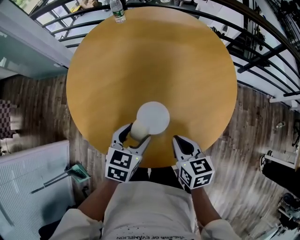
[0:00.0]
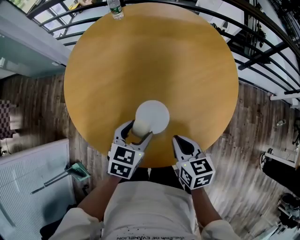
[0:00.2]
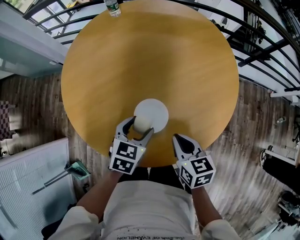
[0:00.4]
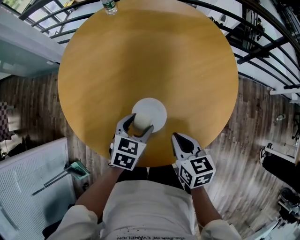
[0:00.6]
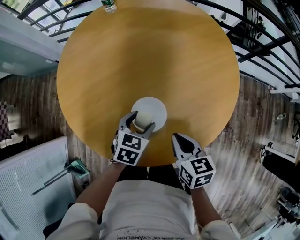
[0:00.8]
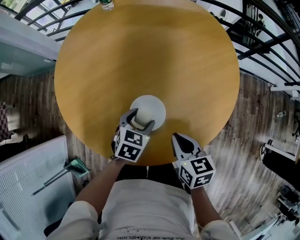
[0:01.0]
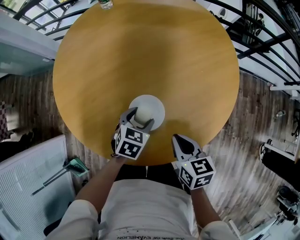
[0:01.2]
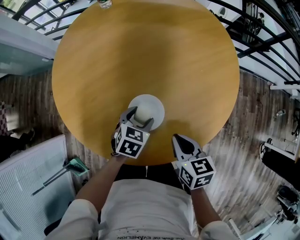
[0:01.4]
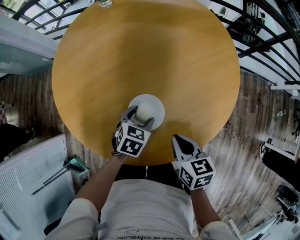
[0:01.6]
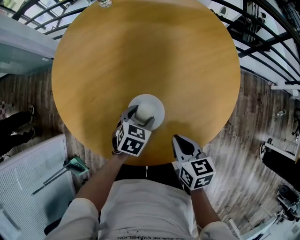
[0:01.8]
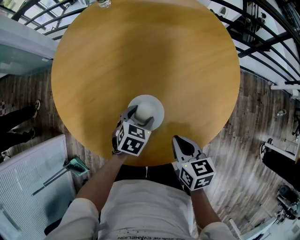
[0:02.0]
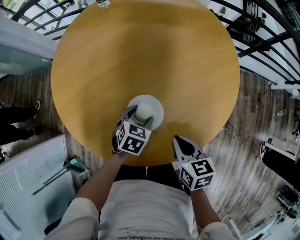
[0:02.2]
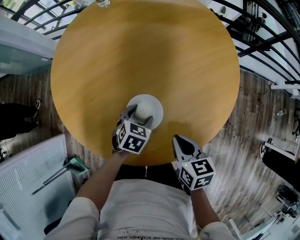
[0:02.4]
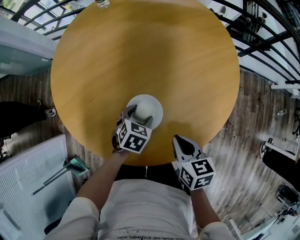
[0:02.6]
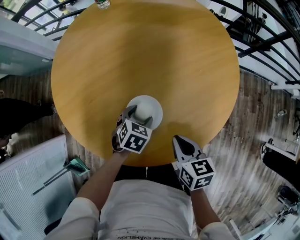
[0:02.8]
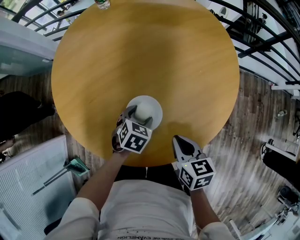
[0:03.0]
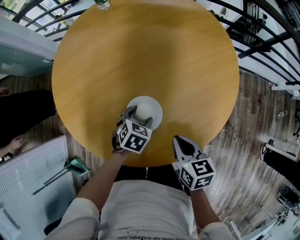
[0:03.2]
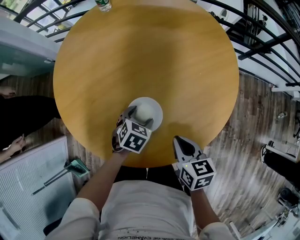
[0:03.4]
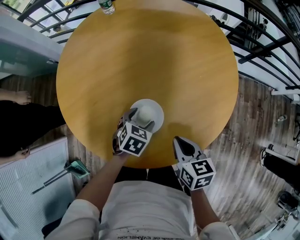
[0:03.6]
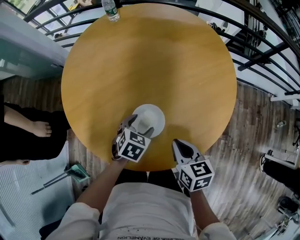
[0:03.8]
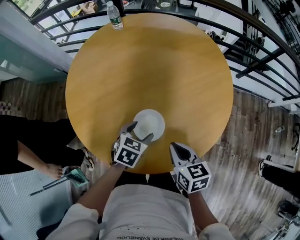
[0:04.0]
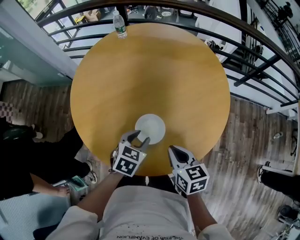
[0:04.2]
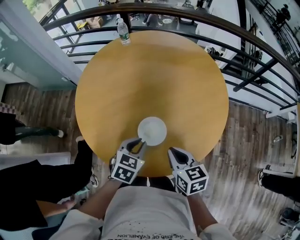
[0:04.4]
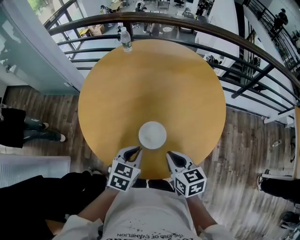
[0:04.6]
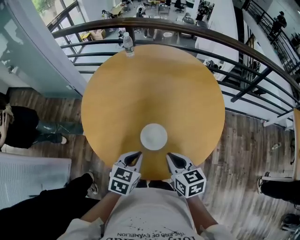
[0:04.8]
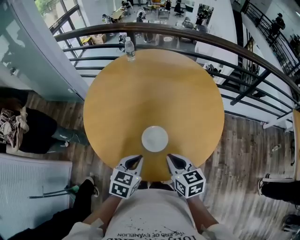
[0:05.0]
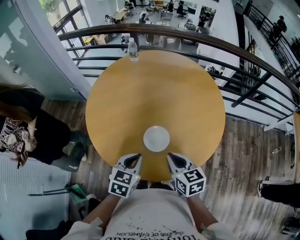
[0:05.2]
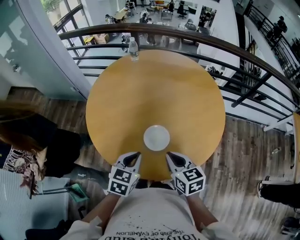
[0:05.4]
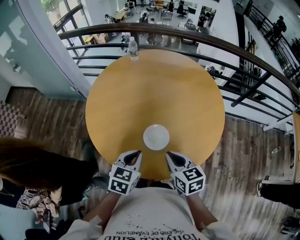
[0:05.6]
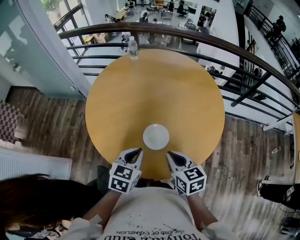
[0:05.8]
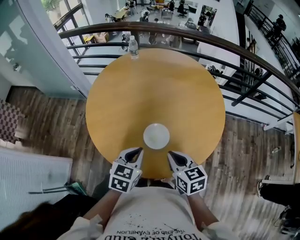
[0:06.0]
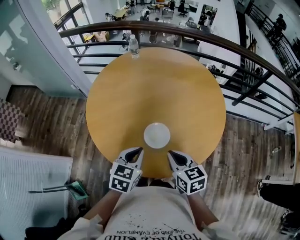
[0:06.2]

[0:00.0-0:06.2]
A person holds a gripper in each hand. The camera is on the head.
0:00.0 to 0:01.6: The left gripper shifts approximately 15 cm downward; the right gripper shifts by some 5 cm.
0:01.6 to 0:03.2: There are only small adjustments of the grippers.
0:03.2 to 0:04.6: The left gripper travels upward and backward by roughly 20 cm, turns by approximately 20 degrees, and closes; the right gripper heads upward, backward and to the left, covering roughly 10 cm.
0:04.6 to 0:06.2: There are only small adjustments of the grippers.

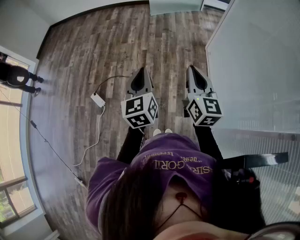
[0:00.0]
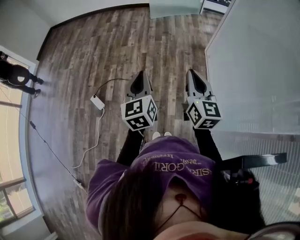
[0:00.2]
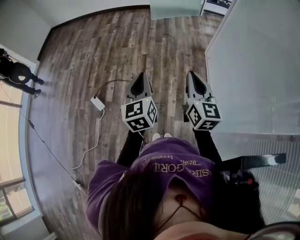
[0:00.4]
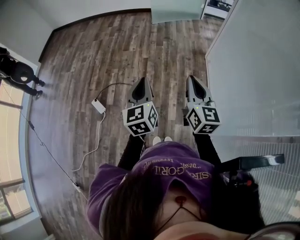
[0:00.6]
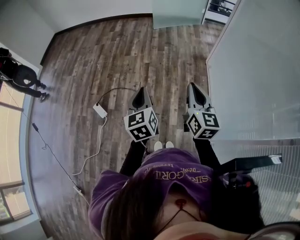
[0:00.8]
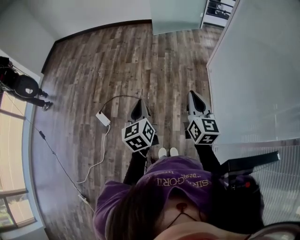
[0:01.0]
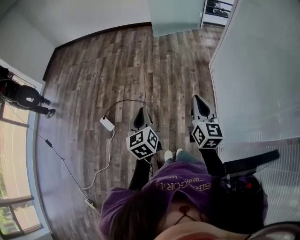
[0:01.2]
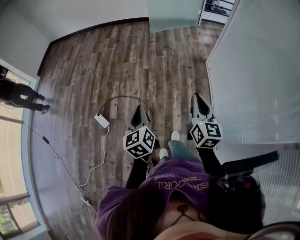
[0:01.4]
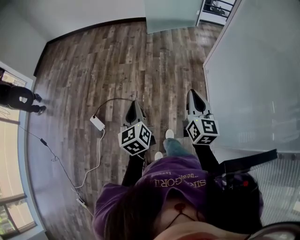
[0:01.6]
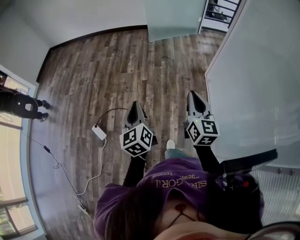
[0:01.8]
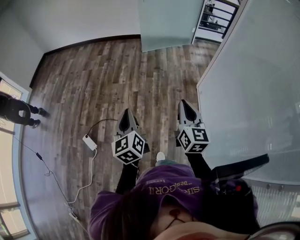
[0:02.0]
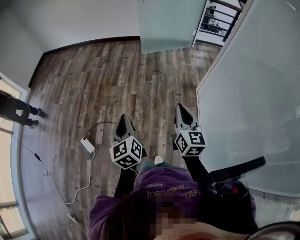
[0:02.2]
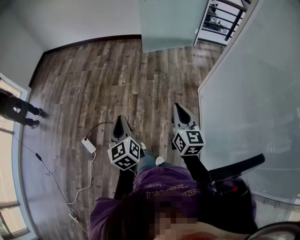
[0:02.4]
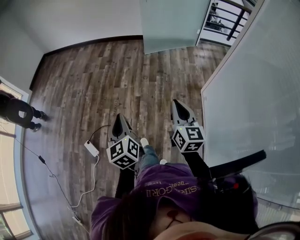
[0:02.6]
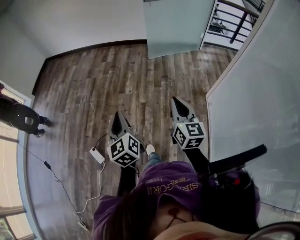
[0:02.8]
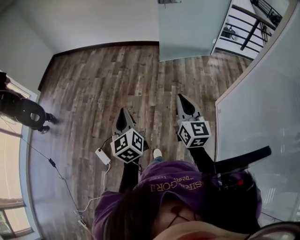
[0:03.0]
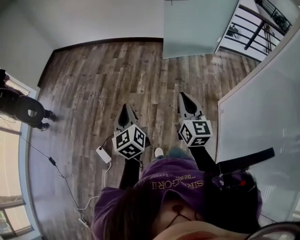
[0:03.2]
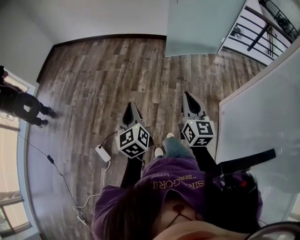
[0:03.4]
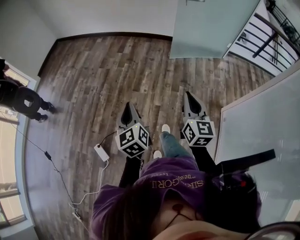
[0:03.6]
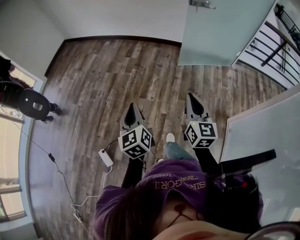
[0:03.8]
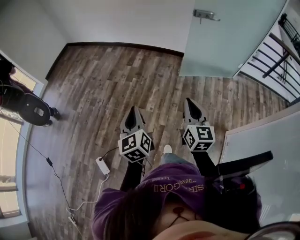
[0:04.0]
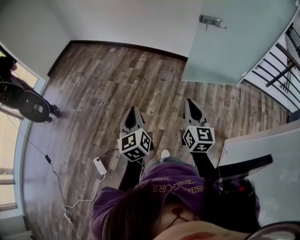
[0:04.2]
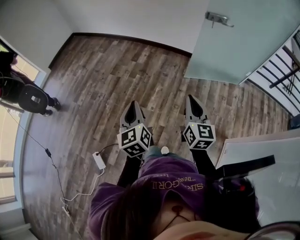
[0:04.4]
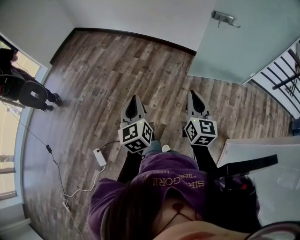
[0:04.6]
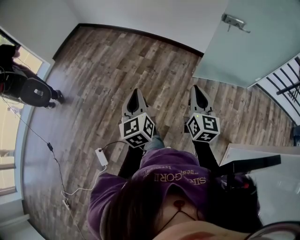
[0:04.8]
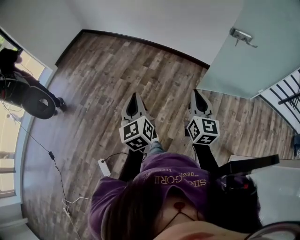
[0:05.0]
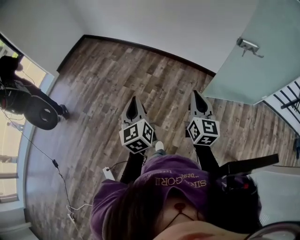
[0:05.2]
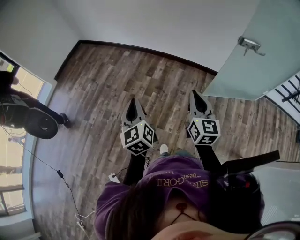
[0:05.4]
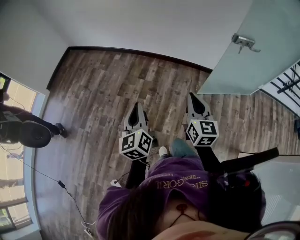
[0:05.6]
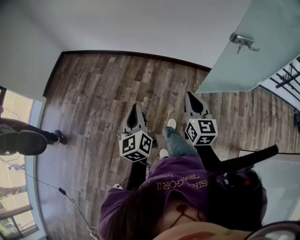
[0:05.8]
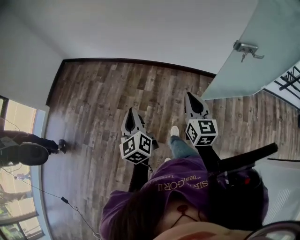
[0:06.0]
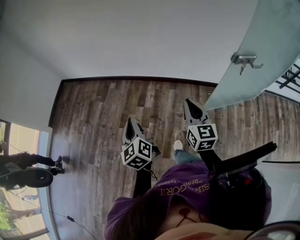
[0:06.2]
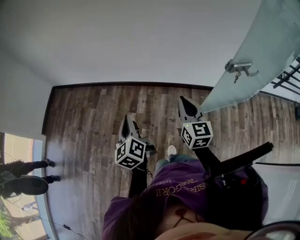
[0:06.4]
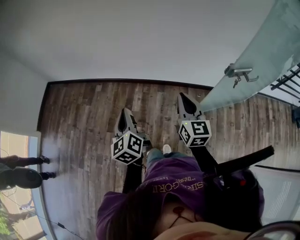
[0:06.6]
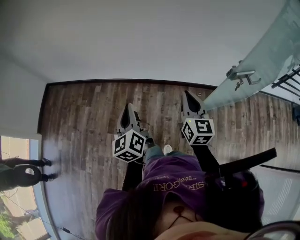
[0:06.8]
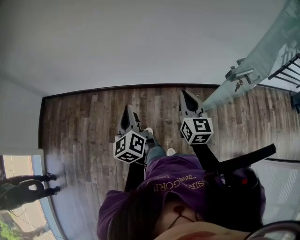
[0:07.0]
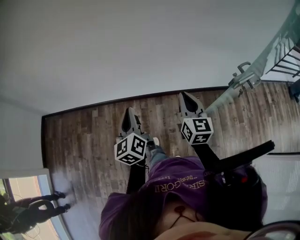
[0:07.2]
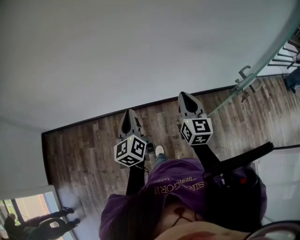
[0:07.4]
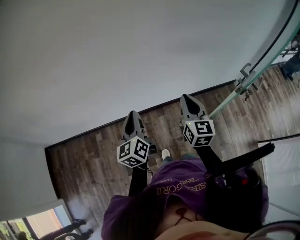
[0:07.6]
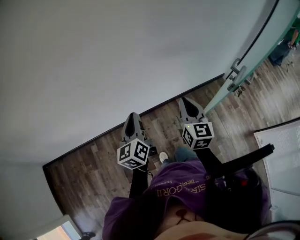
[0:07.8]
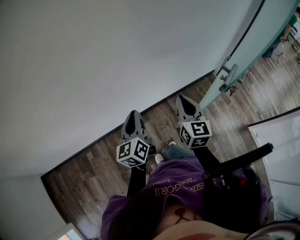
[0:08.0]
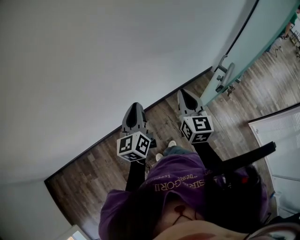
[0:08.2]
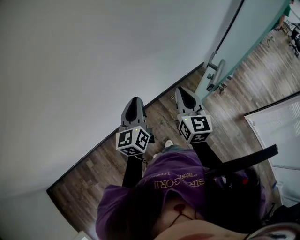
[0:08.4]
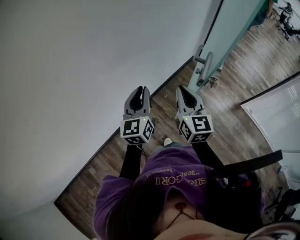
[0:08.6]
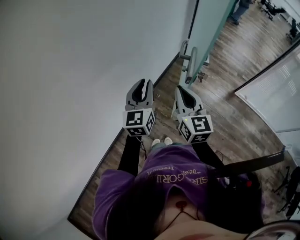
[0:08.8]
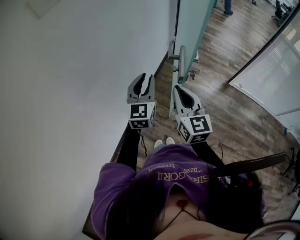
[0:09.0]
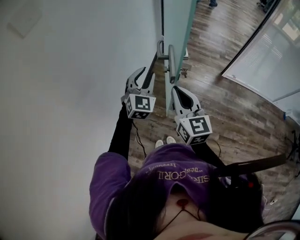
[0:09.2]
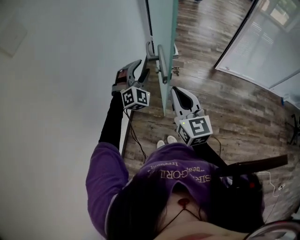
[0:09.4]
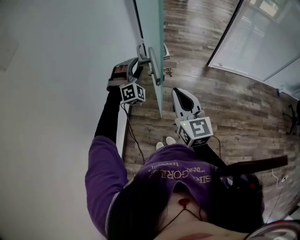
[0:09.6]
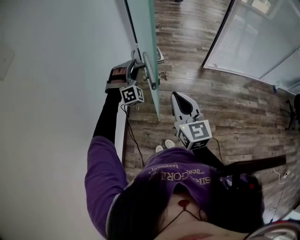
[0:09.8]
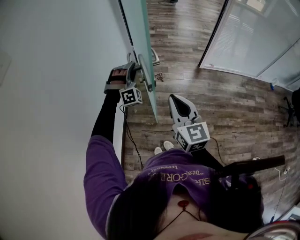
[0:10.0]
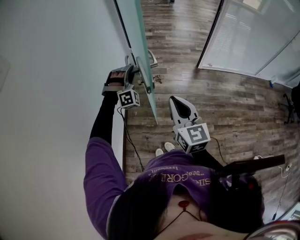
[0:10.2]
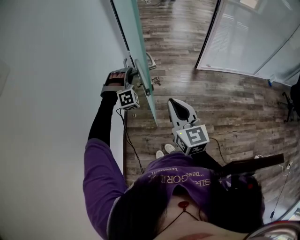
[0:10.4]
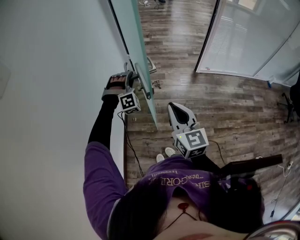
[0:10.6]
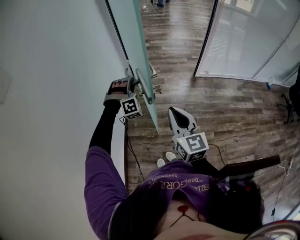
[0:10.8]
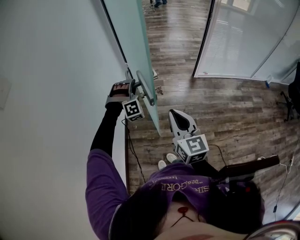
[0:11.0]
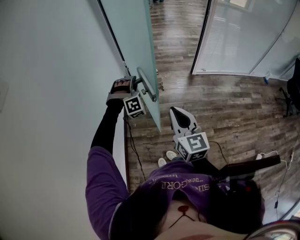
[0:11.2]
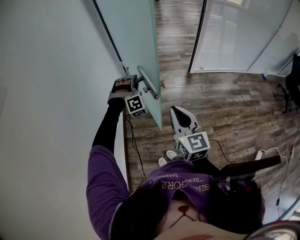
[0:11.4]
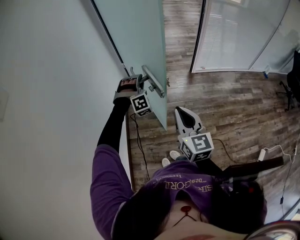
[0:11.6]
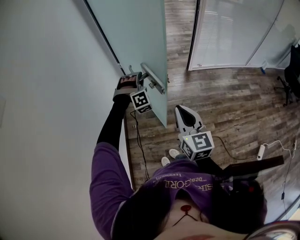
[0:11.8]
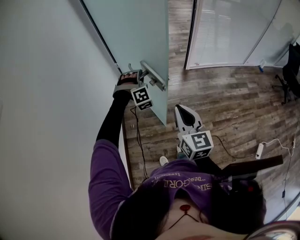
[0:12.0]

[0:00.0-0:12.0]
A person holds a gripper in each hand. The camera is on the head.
0:00.0 to 0:01.6: The right gripper moves forward, some 5 cm; the left gripper goes about 10 cm downward and to the left.
0:01.6 to 0:03.0: The grippers both shift forward by some 35 cm.
0:03.0 to 0:04.4: Both grippers move forward, approximately 35 cm.
0:04.4 to 0:06.0: The two grippers travel together, forward, some 40 cm.
0:06.0 to 0:07.6: Both grippers are carried about 50 cm. The right gripper changes its angle by approximately 30 degrees. The left gripper turns by approximately 40 degrees.
0:07.6 to 0:09.0: The left gripper ends up approximately 40 cm from where it was, and rotates about 70 degrees, while the right gripper shifts by some 25 cm, and changes its angle by some 40 degrees.
0:09.0 to 0:10.4: The right gripper travels to the right by approximately 10 cm, and rotates some 20 degrees. The left gripper shifts roughly 20 cm forward, to the right and downward, and rotates around the line of its fingers by about 90 degrees, clockwise from behind.
0:10.4 to 0:12.0: The left gripper moves to the right, roughly 10 cm, while the right gripper shifts some 5 cm to the right.

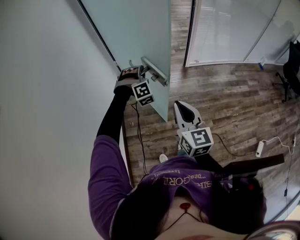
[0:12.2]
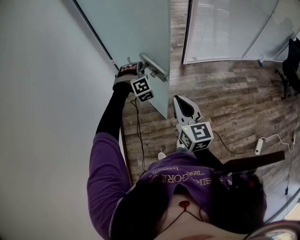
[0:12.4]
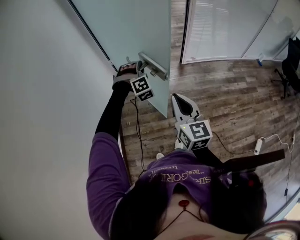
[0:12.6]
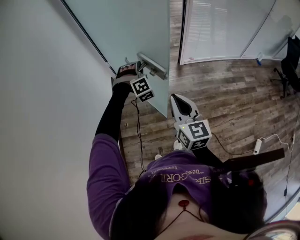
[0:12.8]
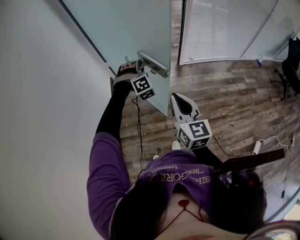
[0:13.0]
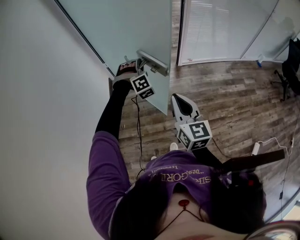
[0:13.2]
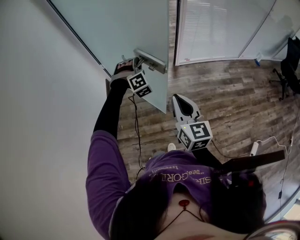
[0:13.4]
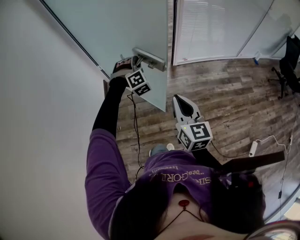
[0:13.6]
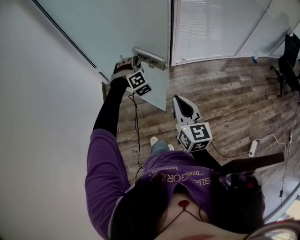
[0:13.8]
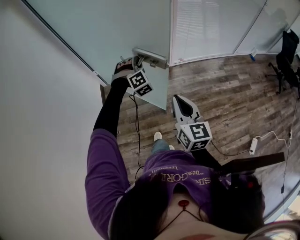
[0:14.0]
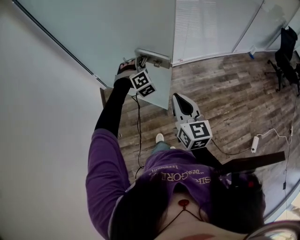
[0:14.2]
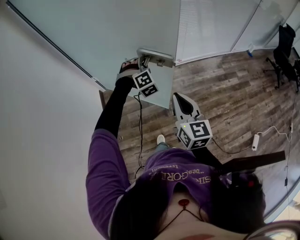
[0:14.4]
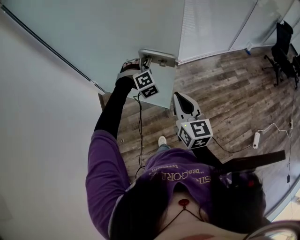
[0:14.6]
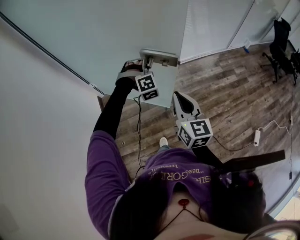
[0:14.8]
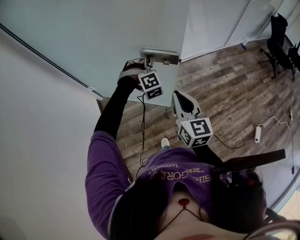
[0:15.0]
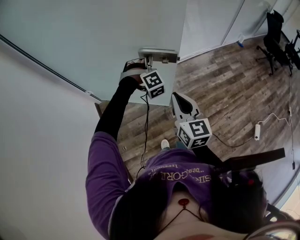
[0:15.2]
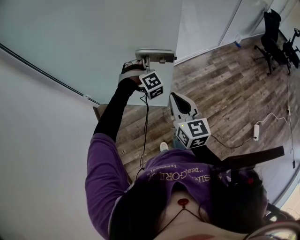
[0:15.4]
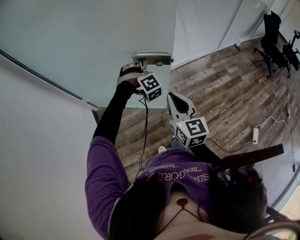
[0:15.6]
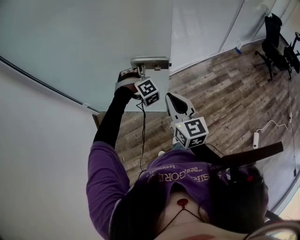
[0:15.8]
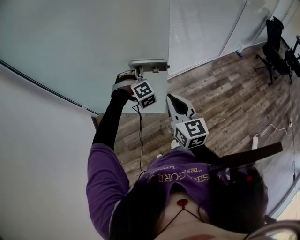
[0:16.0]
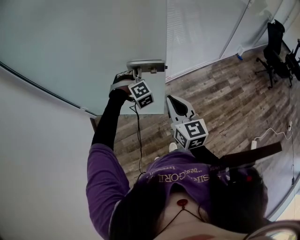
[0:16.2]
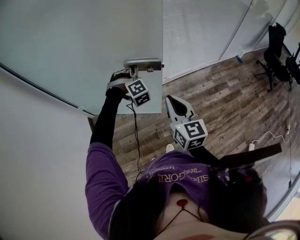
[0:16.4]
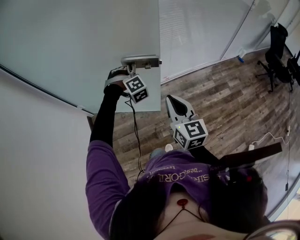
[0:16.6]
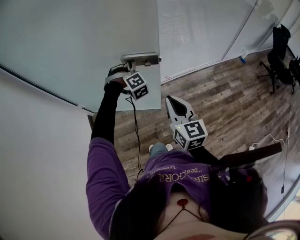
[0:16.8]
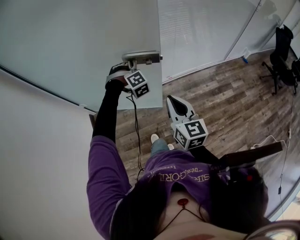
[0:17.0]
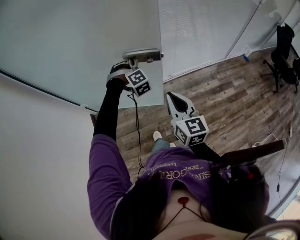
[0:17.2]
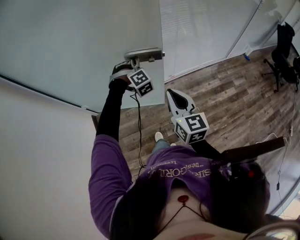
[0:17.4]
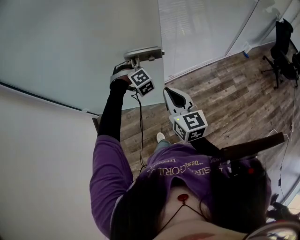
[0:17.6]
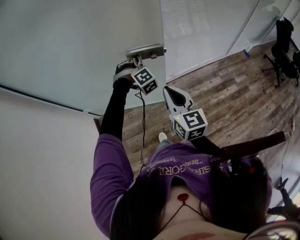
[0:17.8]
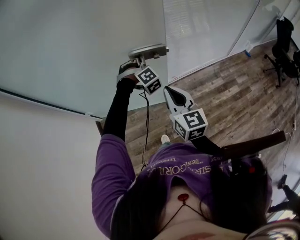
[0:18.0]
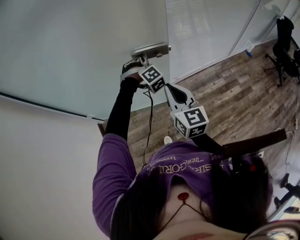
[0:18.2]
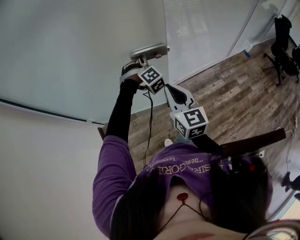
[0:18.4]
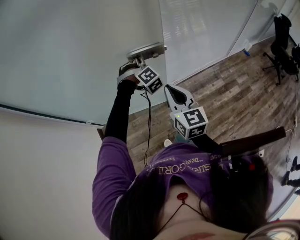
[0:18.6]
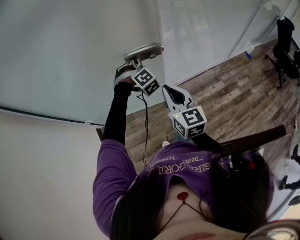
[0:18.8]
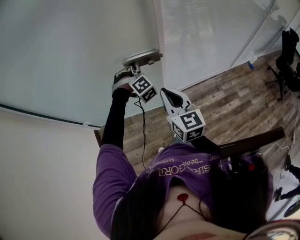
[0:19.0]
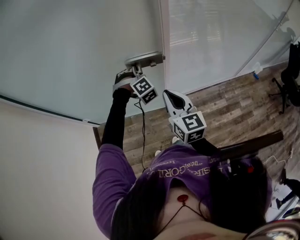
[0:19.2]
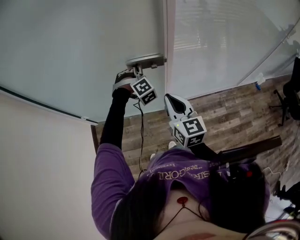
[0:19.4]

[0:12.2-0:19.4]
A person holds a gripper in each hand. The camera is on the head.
0:12.2 to 0:13.6: The two grippers go approximately 20 cm to the right and forward.
0:13.6 to 0:15.0: The right gripper heads forward, covering about 15 cm. The left gripper travels forward and to the right by approximately 15 cm.
0:15.0 to 0:16.6: The right gripper heads to the right and forward, covering roughly 20 cm. The left gripper shifts approximately 15 cm forward and to the right.
0:16.6 to 0:18.0: The two grippers go roughly 10 cm forward.
0:18.0 to 0:19.4: The left gripper travels forward by some 10 cm. The right gripper goes roughly 15 cm forward and to the right.
